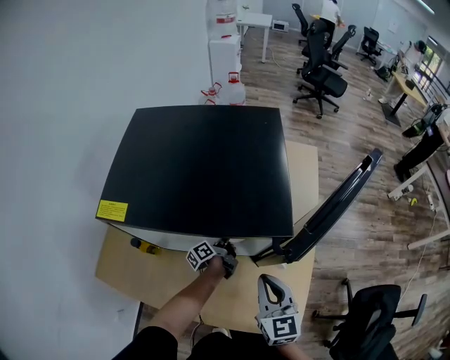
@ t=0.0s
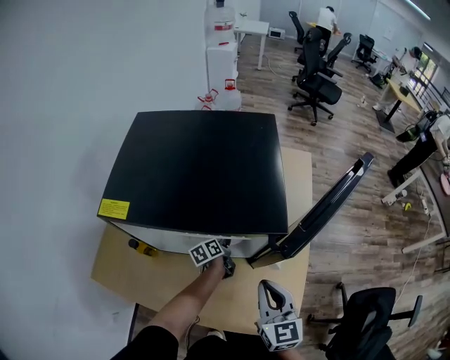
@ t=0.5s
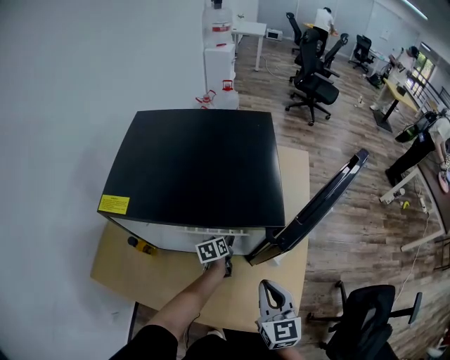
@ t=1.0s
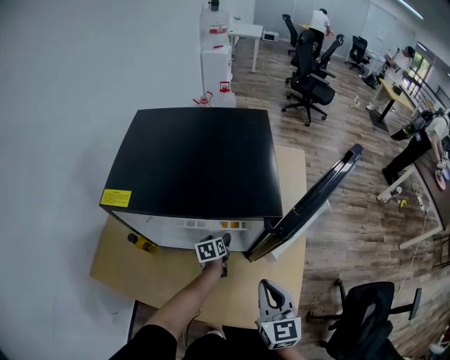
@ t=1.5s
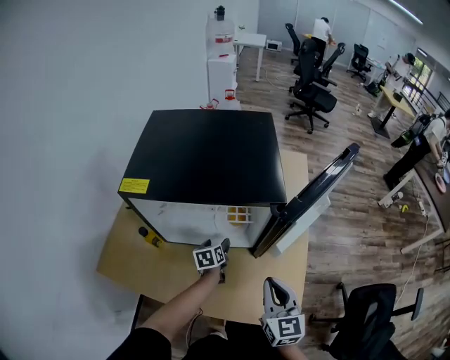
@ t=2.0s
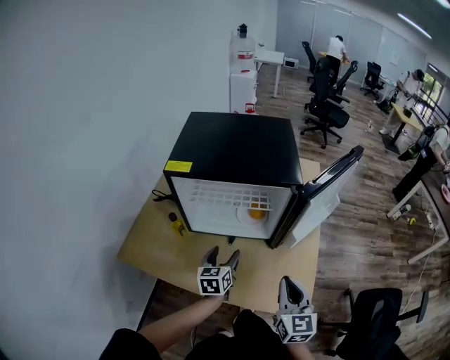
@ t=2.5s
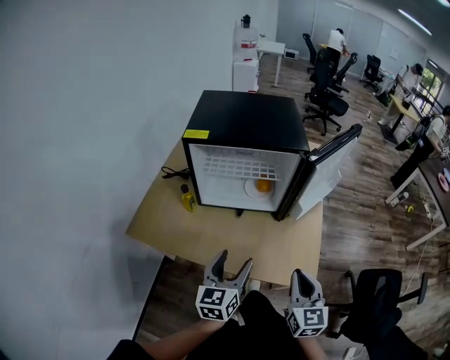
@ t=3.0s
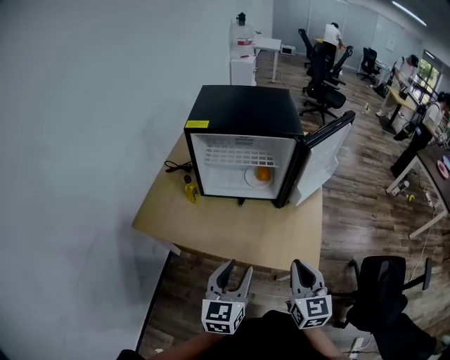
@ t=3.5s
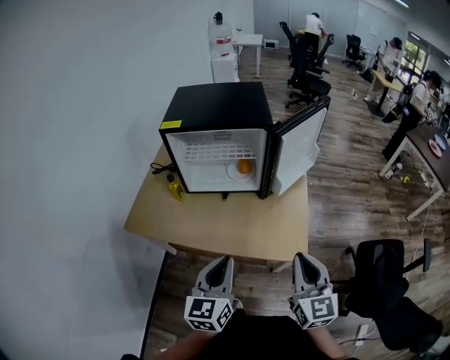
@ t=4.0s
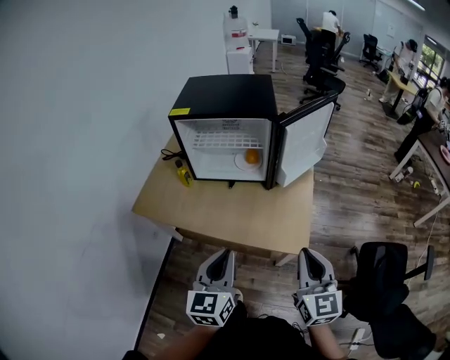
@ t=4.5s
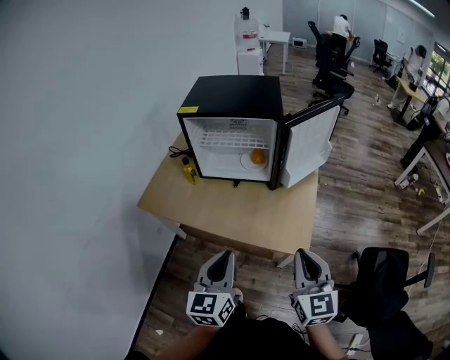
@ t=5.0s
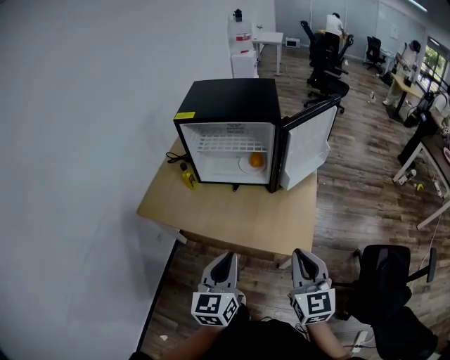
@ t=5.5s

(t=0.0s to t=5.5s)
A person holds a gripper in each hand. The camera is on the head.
t=0.0s - t=2.0s: The grippers both shift backward by some 5 cm. The left gripper rolls clockwise, seen from behind, by some 50 degrees, and opens up.
t=2.0s - t=3.5s: The left gripper is displaced backward and upward by some 50 cm, and swivels roughly 40 degrees; the right gripper is displaced backward by some 25 cm.
t=3.5s - t=5.5s: The left gripper moves some 5 cm, and closes its fingers; the right gripper travels to the right and backward by some 10 cm.

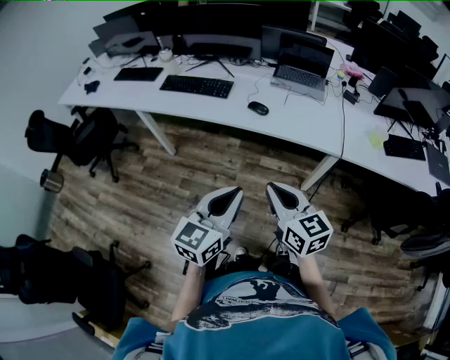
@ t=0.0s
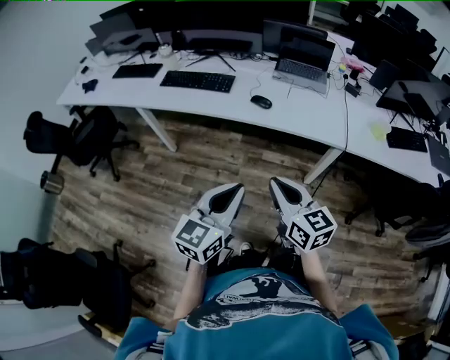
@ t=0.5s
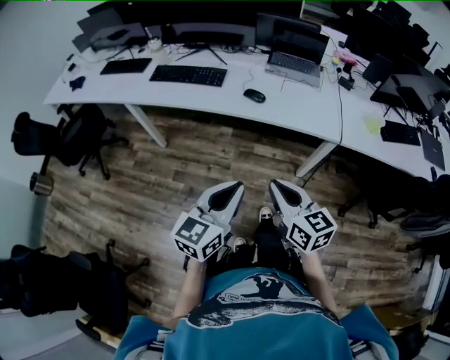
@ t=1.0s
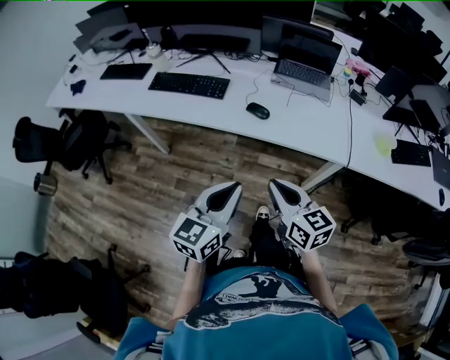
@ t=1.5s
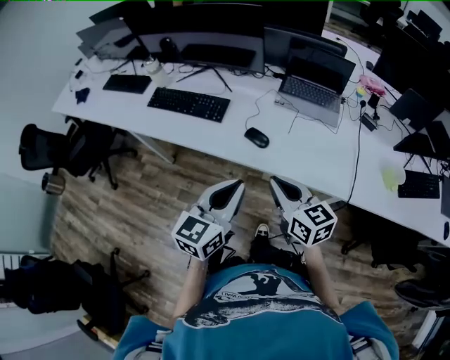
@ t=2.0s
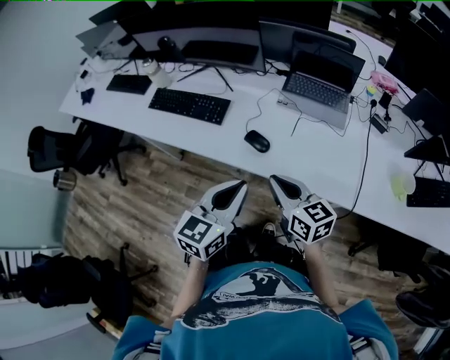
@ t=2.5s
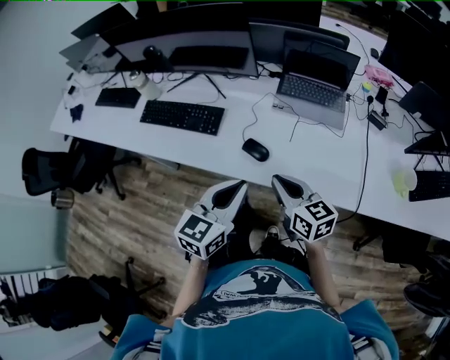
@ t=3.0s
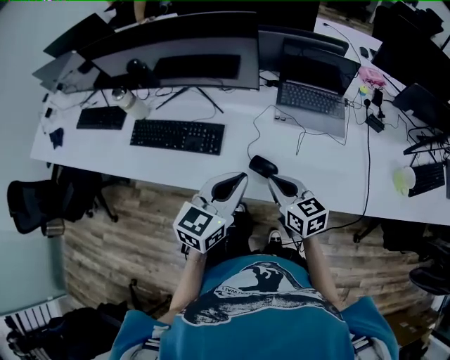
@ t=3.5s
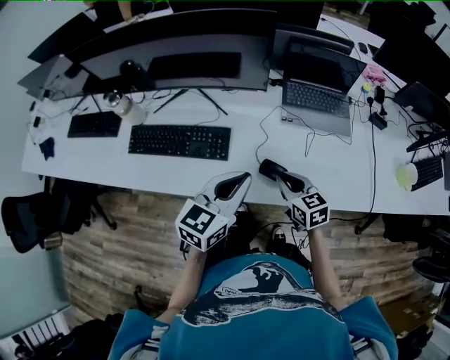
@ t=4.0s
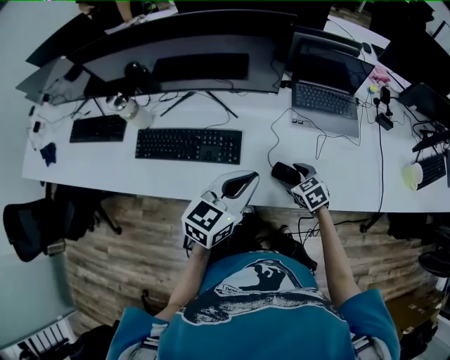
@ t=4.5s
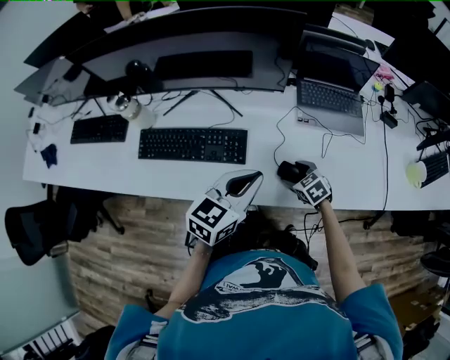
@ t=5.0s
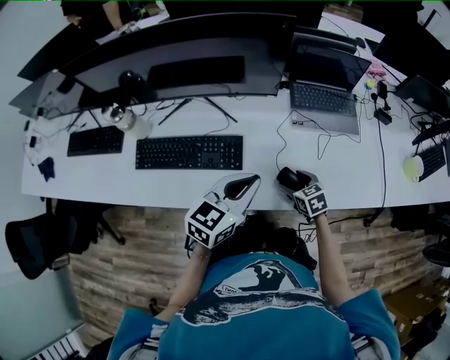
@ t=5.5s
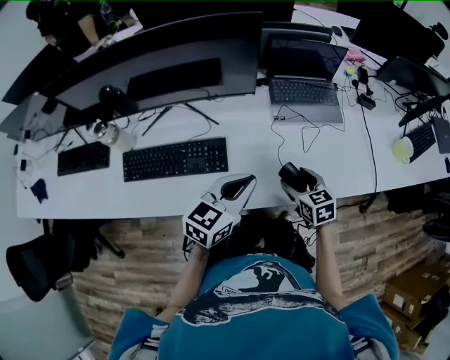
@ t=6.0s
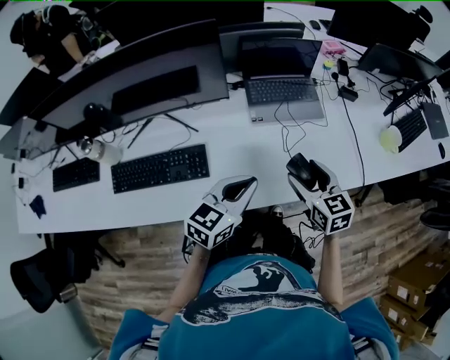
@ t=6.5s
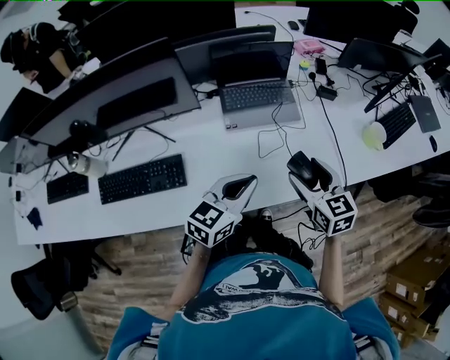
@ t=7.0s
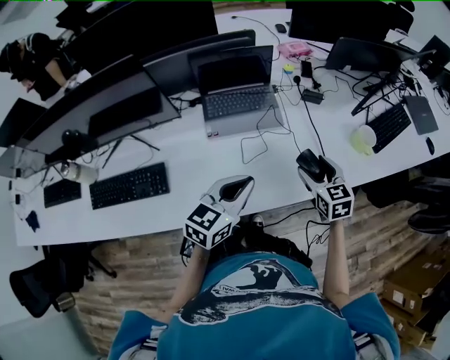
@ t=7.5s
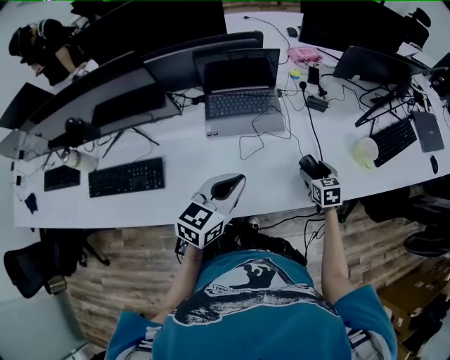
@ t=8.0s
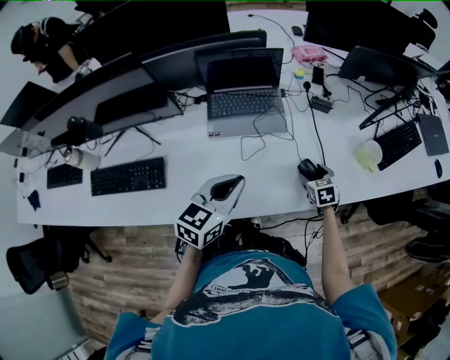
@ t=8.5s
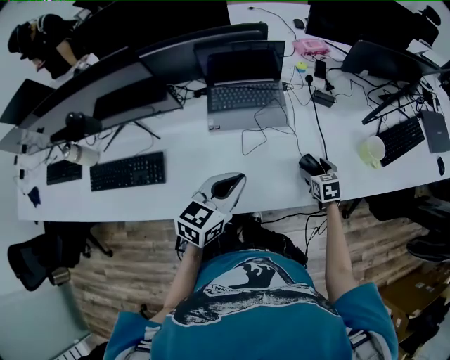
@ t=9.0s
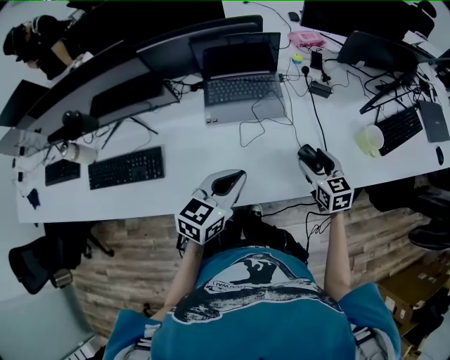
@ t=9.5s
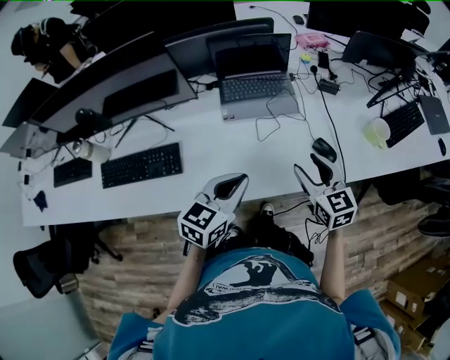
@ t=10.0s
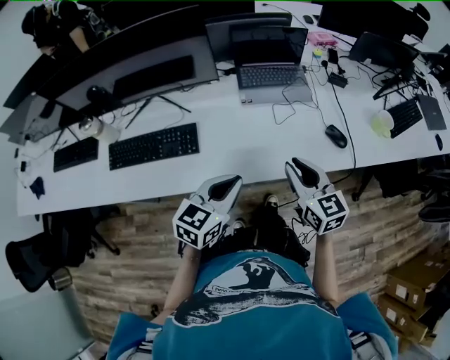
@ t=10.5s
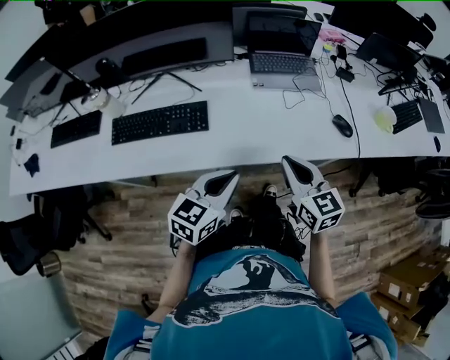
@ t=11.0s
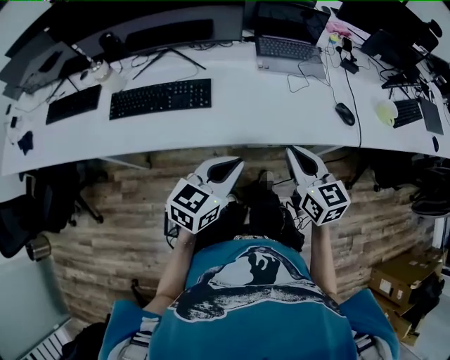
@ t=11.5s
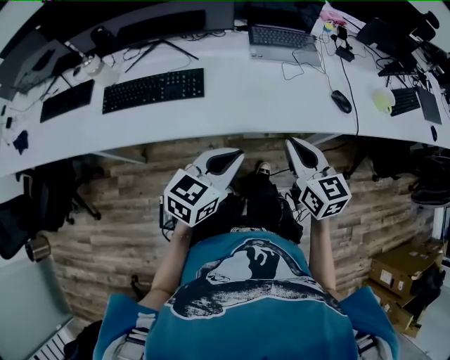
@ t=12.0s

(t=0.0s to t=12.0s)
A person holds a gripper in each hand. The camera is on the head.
t=0.0s - t=2.0s: Both grippers travel together forward, about 25 cm.
t=2.0s - t=4.0s: The left gripper heads forward, covering approximately 20 cm, and rotates about 20 degrees, while the right gripper travels forward and downward by some 25 cm, and changes its angle by some 20 degrees.
t=4.0s - t=6.0s: The right gripper goes downward and returns, about 10 cm each way, and opens up.
t=6.0s - t=8.0s: The left gripper heads to the right and forward, covering some 25 cm; the right gripper travels to the right and forward by approximately 35 cm.
t=8.0s - t=10.0s: The left gripper goes roughly 5 cm backward; the right gripper shifts about 25 cm upward, to the left and backward, and swivels about 20 degrees.
t=10.0s - t=12.0s: Both grippers move backward and to the left, about 20 cm. The right gripper closes its fingers.

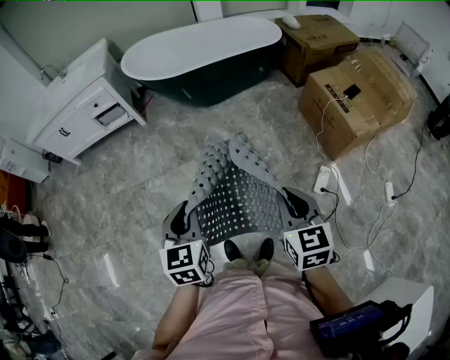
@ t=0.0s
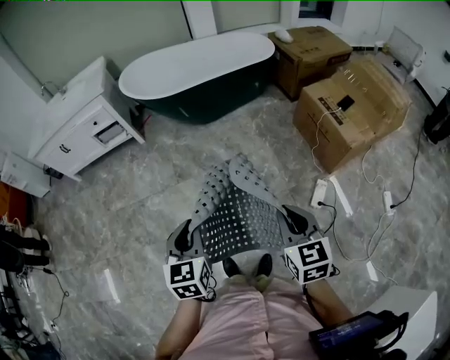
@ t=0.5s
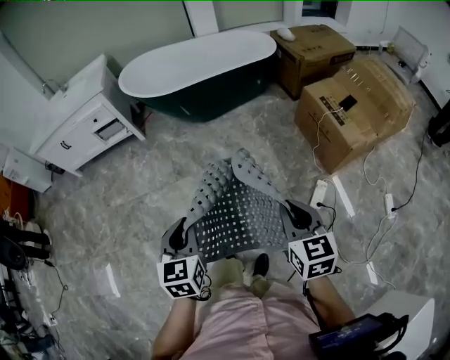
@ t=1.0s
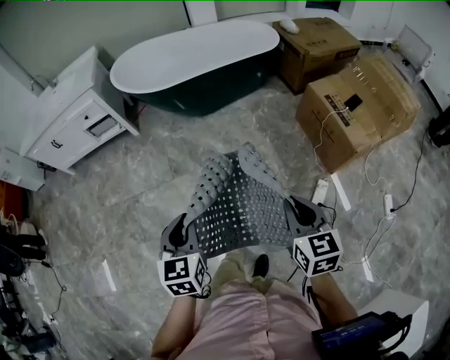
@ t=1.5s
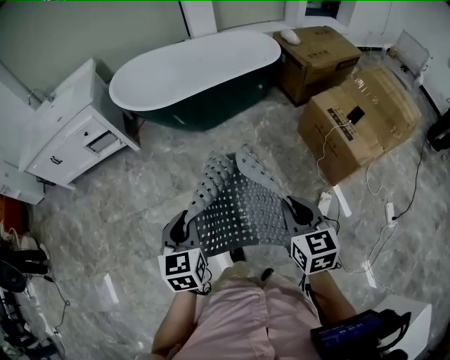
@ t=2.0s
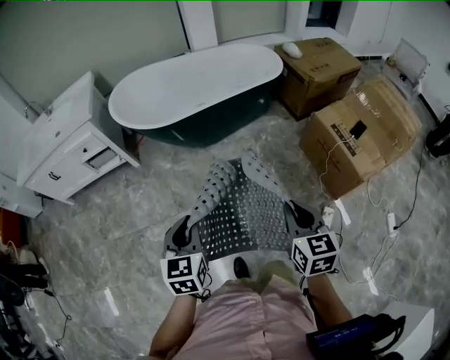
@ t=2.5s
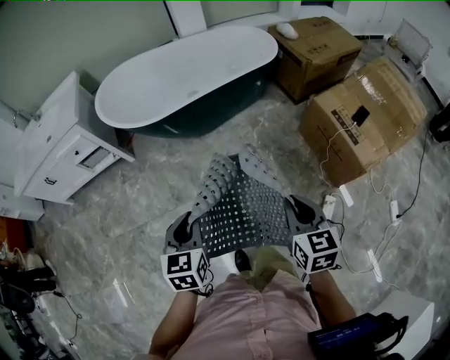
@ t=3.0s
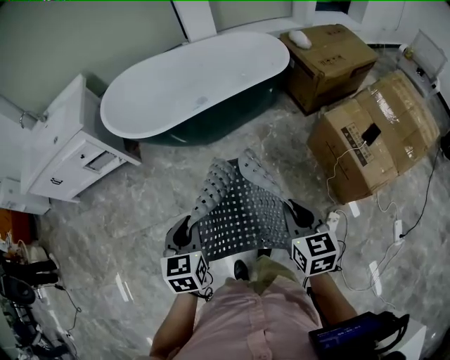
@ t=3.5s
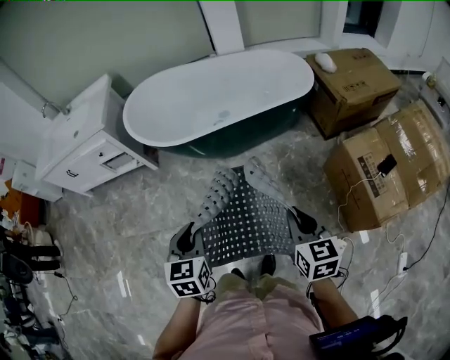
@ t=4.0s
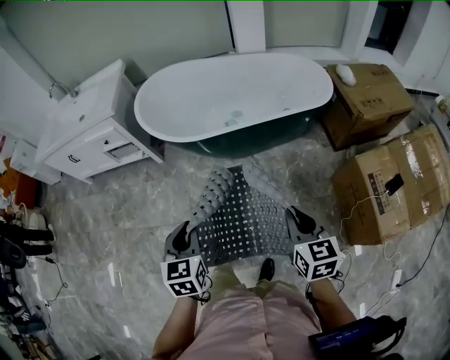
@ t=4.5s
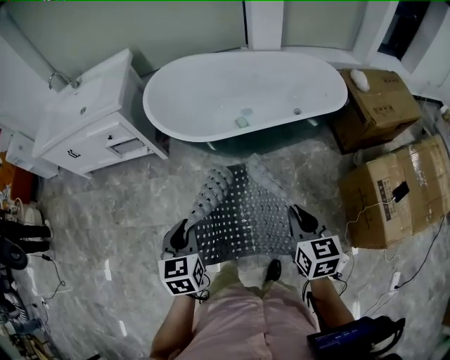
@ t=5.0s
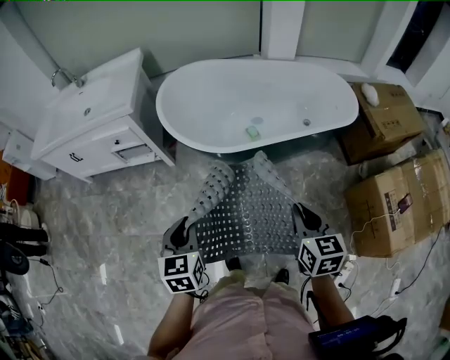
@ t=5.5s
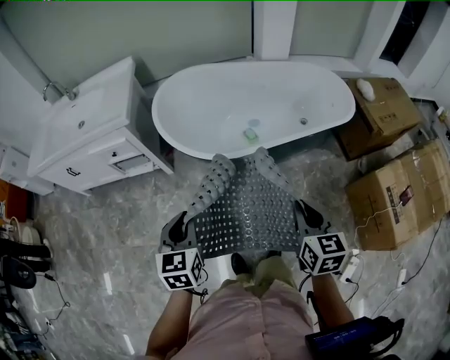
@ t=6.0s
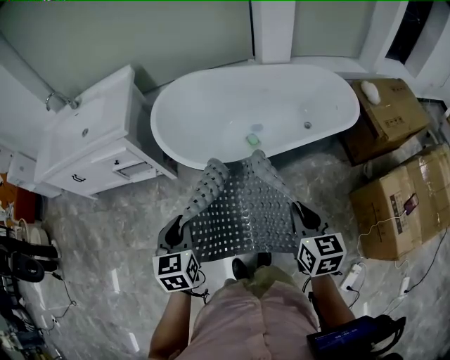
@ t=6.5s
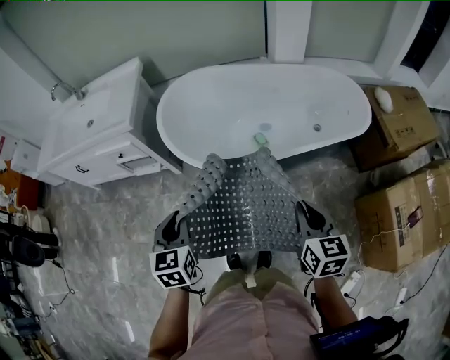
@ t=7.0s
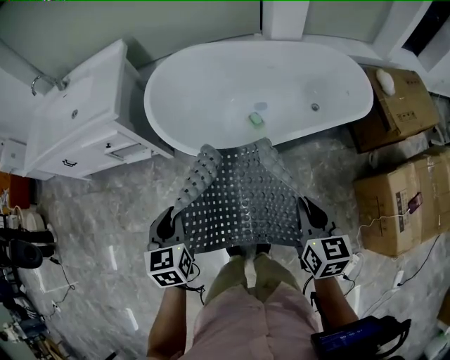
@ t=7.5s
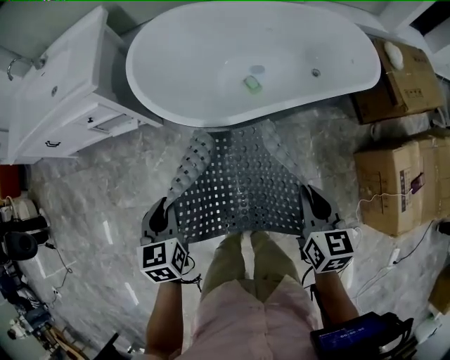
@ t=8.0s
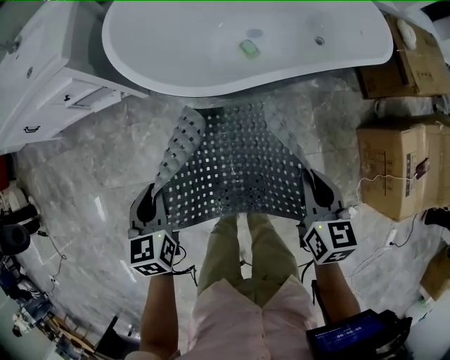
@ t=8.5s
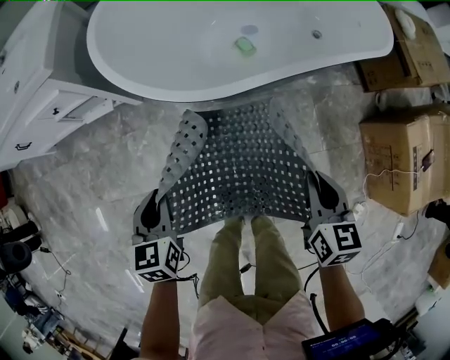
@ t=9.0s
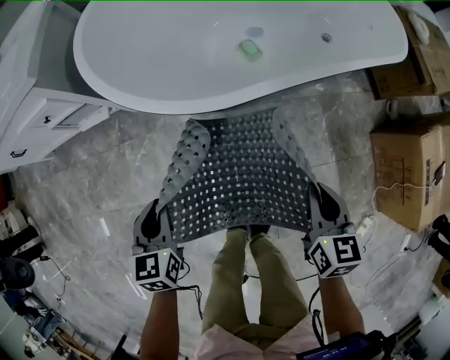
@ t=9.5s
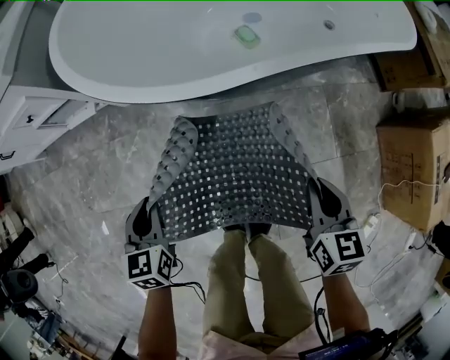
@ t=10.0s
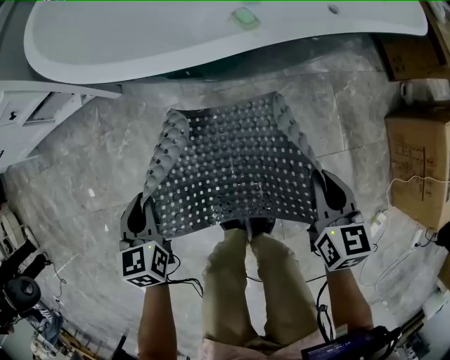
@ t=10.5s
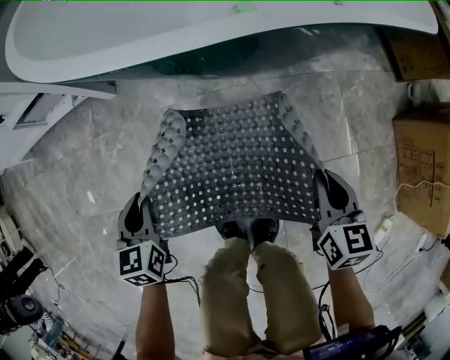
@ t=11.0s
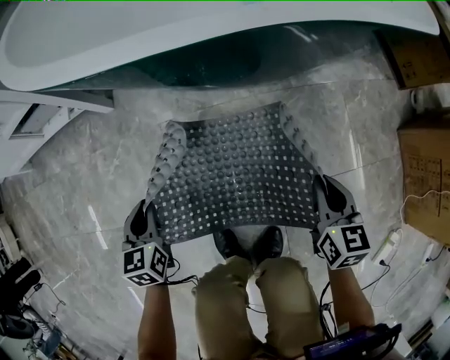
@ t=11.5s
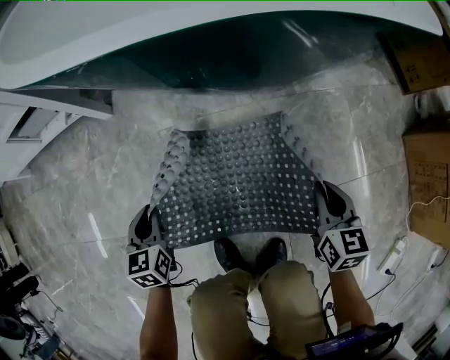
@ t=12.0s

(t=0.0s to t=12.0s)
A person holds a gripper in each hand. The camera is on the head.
t=0.0s - t=2.0s: Both grippers move forward, about 20 cm.
t=2.0s - t=4.0s: The grippers both shift forward by about 25 cm.
t=4.0s - t=6.0s: The two grippers go approximately 35 cm to the left and forward.
t=6.0s - t=8.0s: The grippers both shift downward and forward by some 10 cm.
t=8.0s - t=10.0s: Both grippers move downward, some 30 cm.
t=10.0s - t=12.0s: Both grippers travel together downward, roughly 25 cm.
